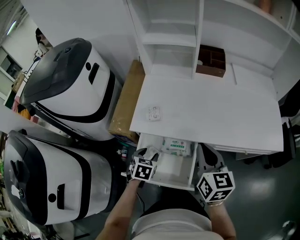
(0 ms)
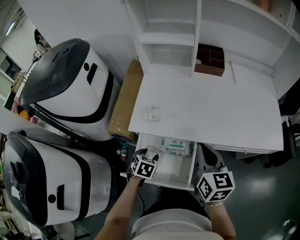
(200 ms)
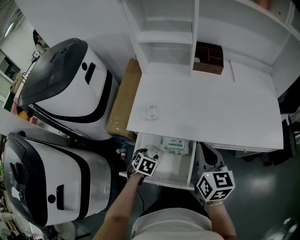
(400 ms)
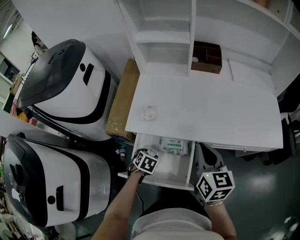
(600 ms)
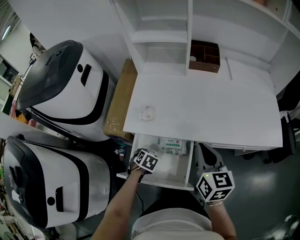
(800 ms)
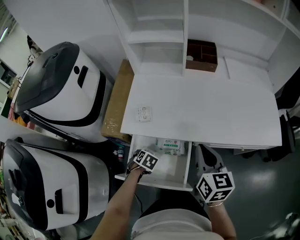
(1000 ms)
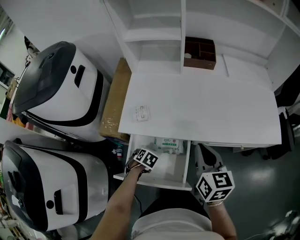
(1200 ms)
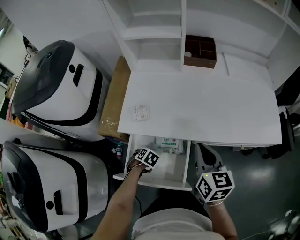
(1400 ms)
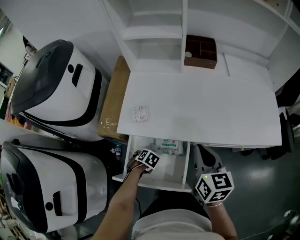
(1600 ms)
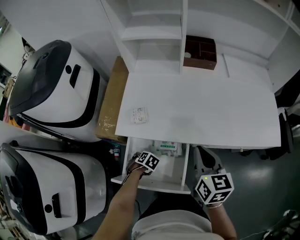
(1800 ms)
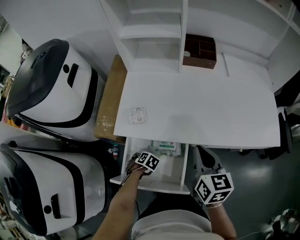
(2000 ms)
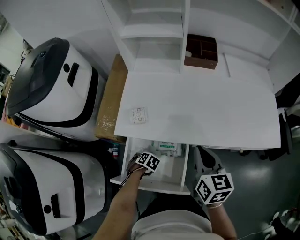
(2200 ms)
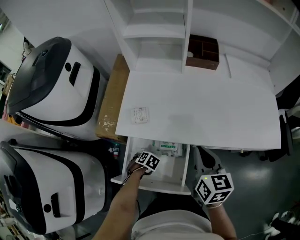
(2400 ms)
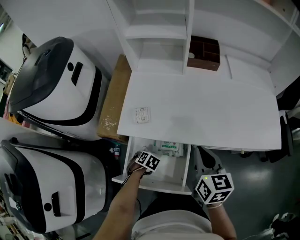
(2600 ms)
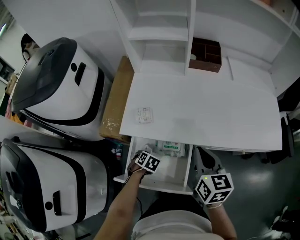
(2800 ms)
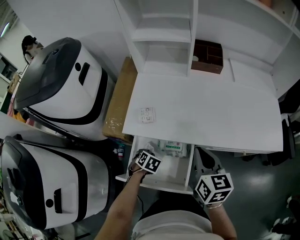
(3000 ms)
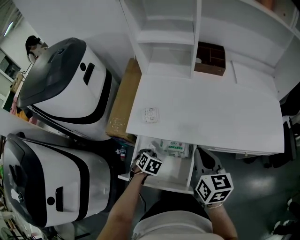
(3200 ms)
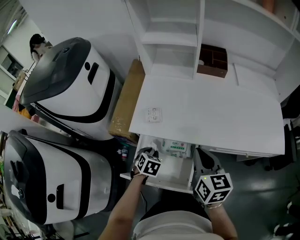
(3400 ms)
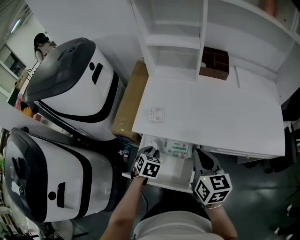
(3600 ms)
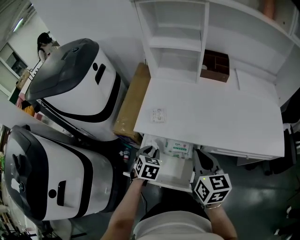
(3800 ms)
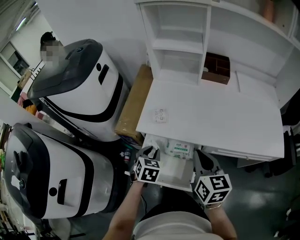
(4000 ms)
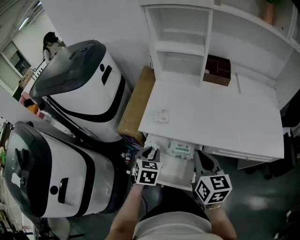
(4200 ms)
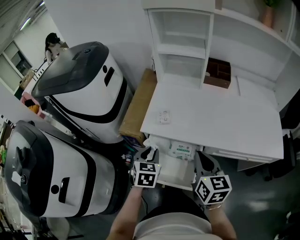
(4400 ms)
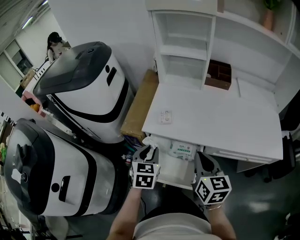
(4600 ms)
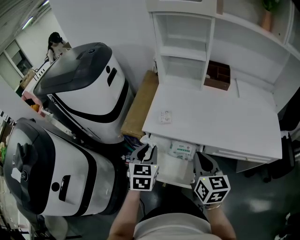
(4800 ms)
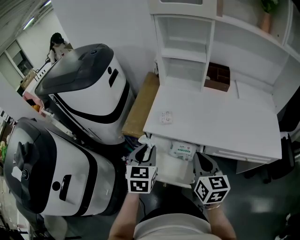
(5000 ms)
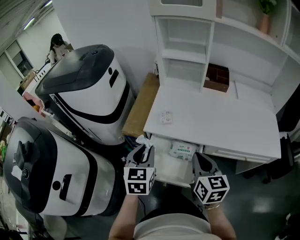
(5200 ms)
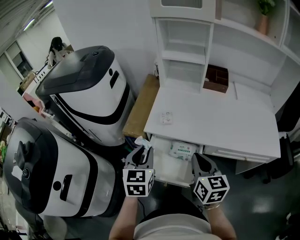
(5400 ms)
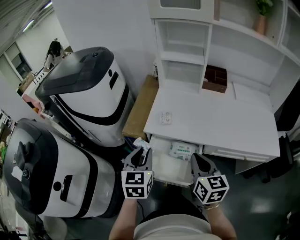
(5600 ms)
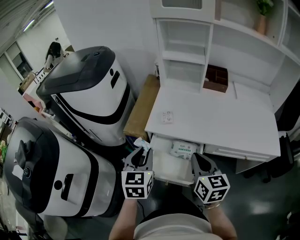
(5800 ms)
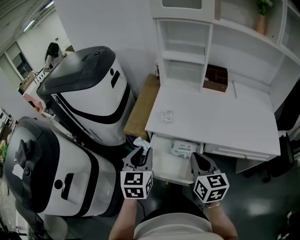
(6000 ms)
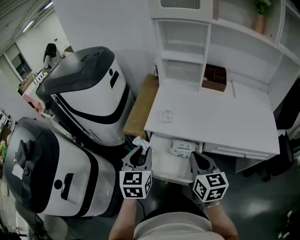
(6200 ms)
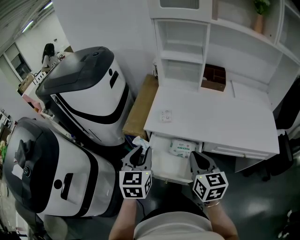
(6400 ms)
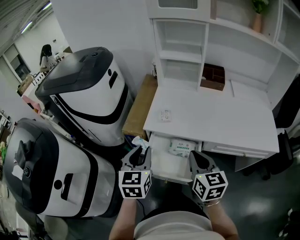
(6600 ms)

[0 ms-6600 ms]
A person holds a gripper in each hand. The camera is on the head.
0 ms to 1600 ms: The left gripper travels downward by approximately 15 cm, and points its fingers about 30 degrees further downward.
1600 ms to 3200 ms: The left gripper travels upward by roughly 10 cm, turns by approximately 20 degrees, and closes.
3200 ms to 5000 ms: The right gripper goes some 10 cm to the left and backward. Meanwhile the left gripper goes about 25 cm upward, and points its fingers approximately 40 degrees further upward.
5000 ms to 6600 ms: The left gripper changes place by about 5 cm.

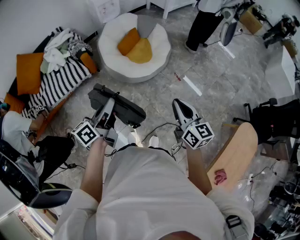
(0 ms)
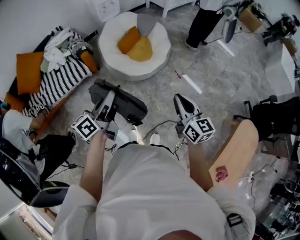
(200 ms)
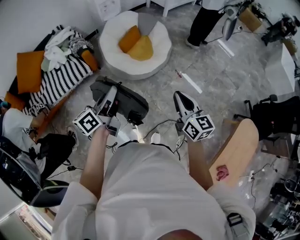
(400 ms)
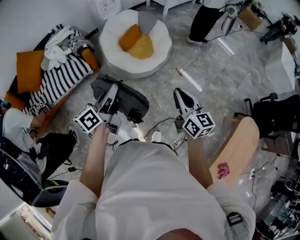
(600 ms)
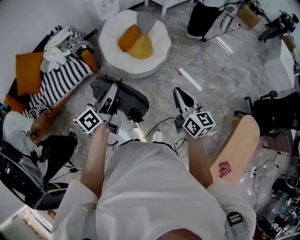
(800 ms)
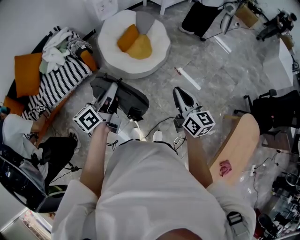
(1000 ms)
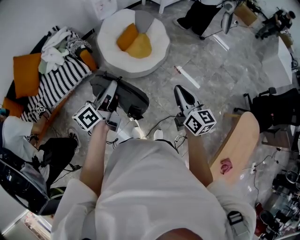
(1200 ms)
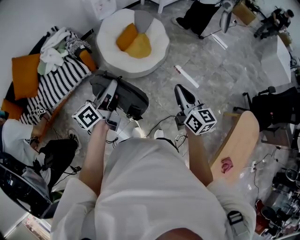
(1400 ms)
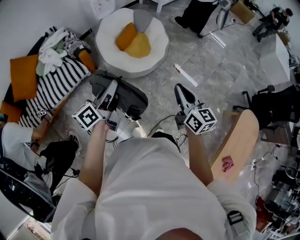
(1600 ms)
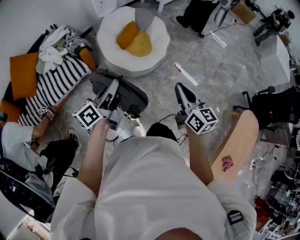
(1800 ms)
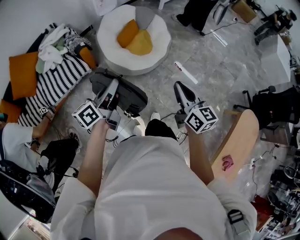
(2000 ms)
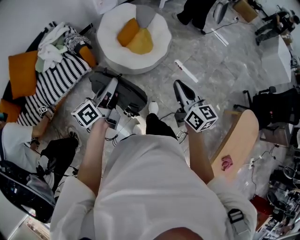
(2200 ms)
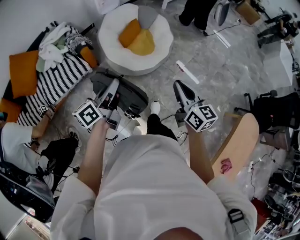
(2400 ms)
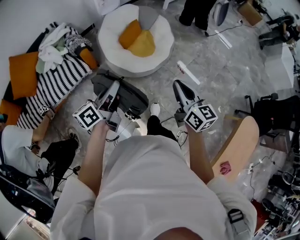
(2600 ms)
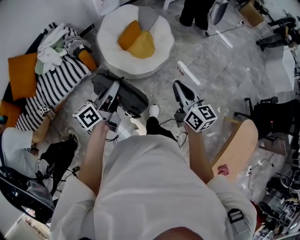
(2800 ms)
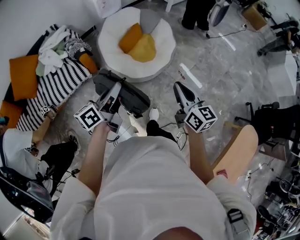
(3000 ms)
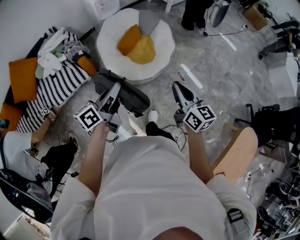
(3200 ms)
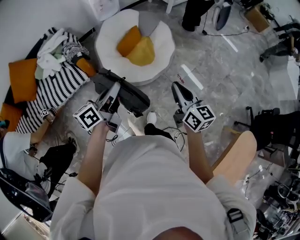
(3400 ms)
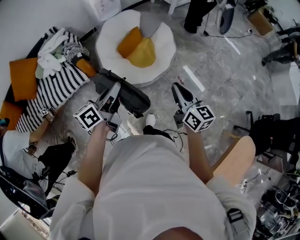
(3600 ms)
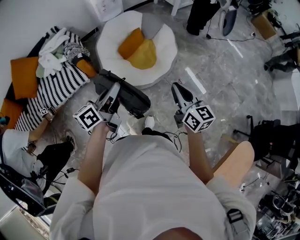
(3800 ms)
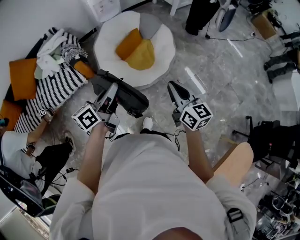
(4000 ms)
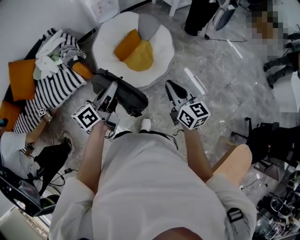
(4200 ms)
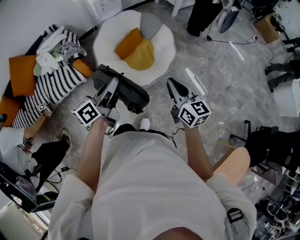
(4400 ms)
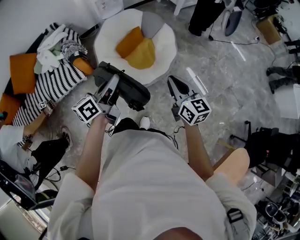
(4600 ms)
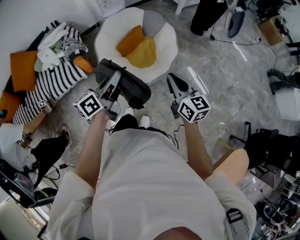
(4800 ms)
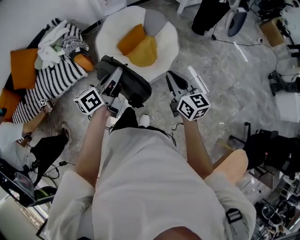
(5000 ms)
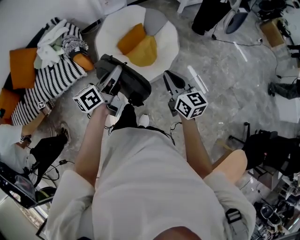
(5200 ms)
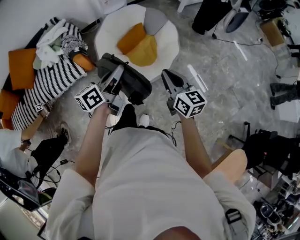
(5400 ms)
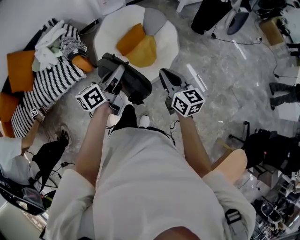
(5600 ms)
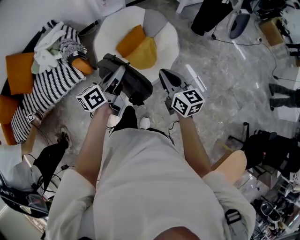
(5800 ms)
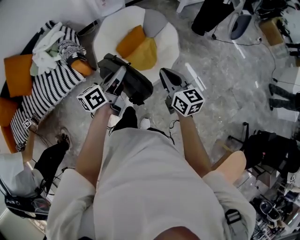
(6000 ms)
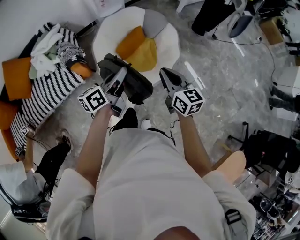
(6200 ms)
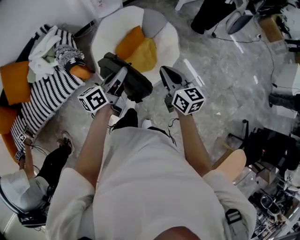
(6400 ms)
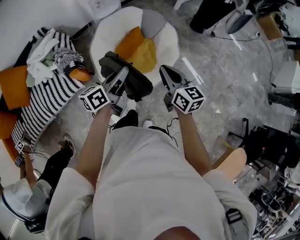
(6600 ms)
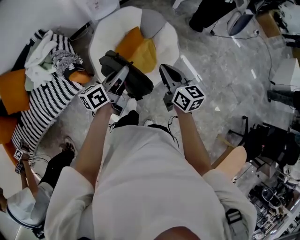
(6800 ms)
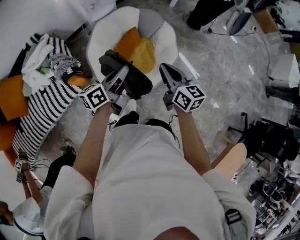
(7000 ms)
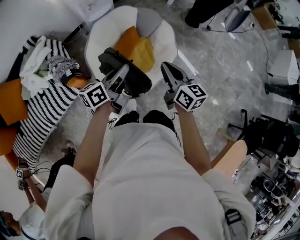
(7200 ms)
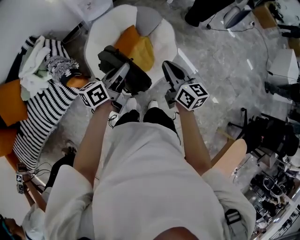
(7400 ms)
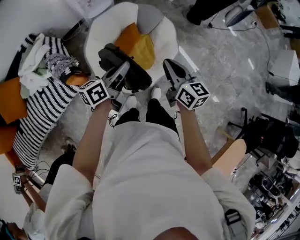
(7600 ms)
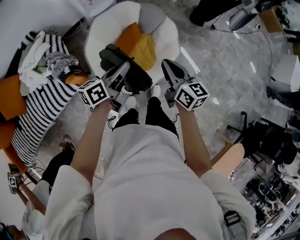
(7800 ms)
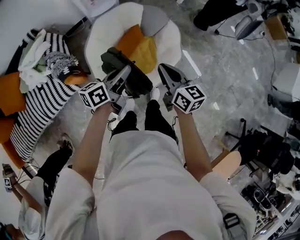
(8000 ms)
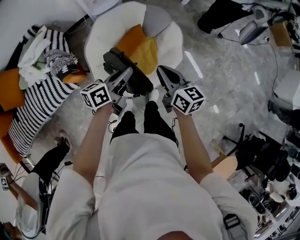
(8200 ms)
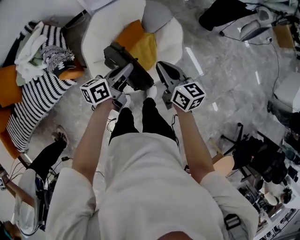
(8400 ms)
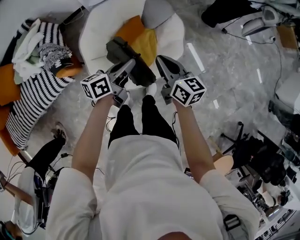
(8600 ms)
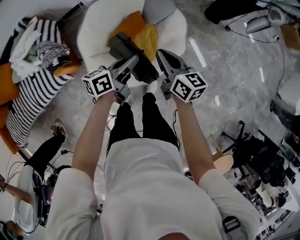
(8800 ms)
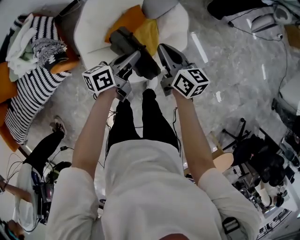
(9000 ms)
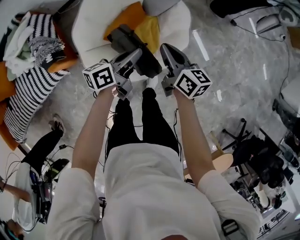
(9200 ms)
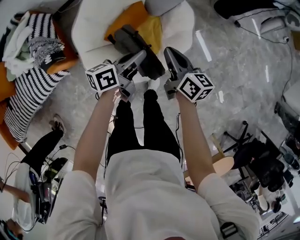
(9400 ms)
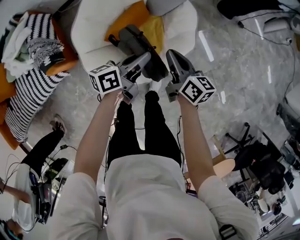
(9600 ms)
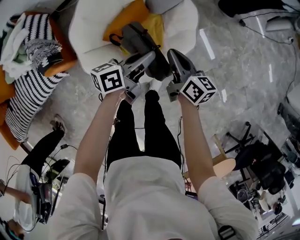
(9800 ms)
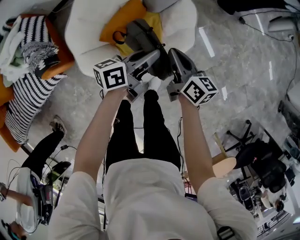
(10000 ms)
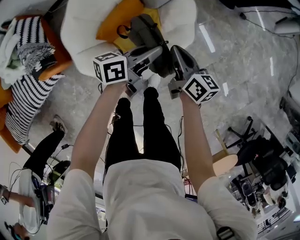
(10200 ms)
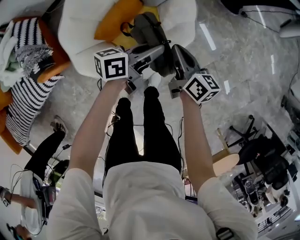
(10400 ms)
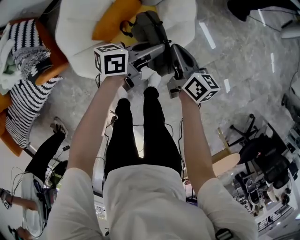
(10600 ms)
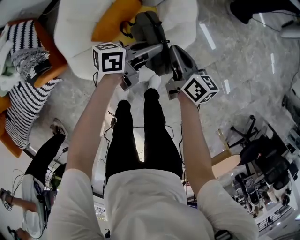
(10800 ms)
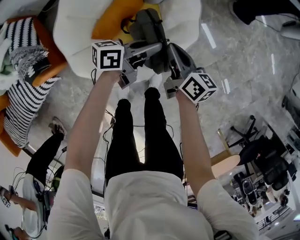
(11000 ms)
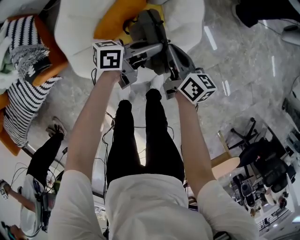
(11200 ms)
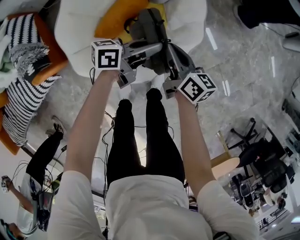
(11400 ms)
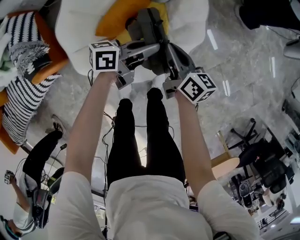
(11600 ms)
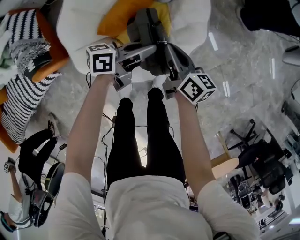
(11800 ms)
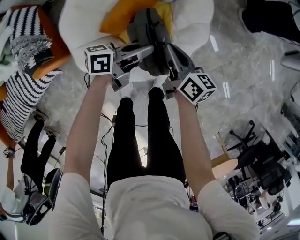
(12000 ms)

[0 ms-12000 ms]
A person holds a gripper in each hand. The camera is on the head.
0 ms to 1600 ms: The right gripper goes roughly 10 cm to the left; the left gripper shifts about 10 cm to the left and forward.
1600 ms to 3000 ms: The two grippers go roughly 10 cm forward.
3000 ms to 4400 ms: The two grippers go about 15 cm forward and to the right.
4400 ms to 6000 ms: The right gripper moves forward and to the left, about 15 cm; the left gripper shifts approximately 10 cm forward.
6000 ms to 7600 ms: The grippers both shift forward by some 15 cm.
7600 ms to 9000 ms: The right gripper travels downward and forward by approximately 20 cm. The left gripper shifts roughly 20 cm downward, to the right and forward.
9000 ms to 10400 ms: The right gripper shifts some 15 cm downward and to the right; the left gripper moves to the right and downward, some 15 cm.
10400 ms to 12000 ms: The right gripper shifts approximately 10 cm to the left and downward. The left gripper goes roughly 10 cm downward and to the left.

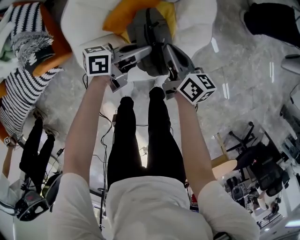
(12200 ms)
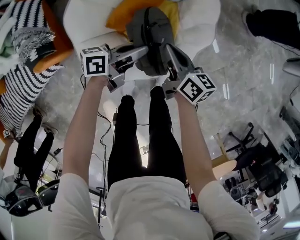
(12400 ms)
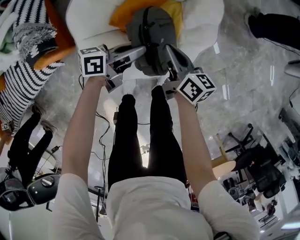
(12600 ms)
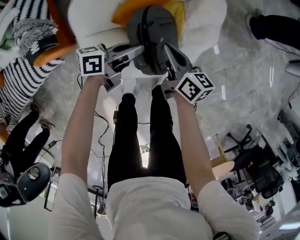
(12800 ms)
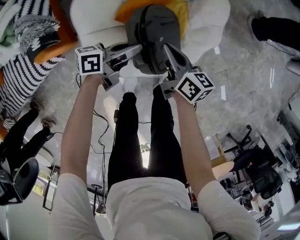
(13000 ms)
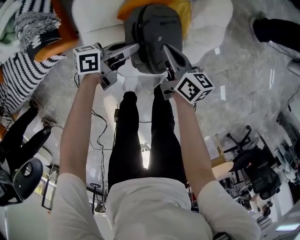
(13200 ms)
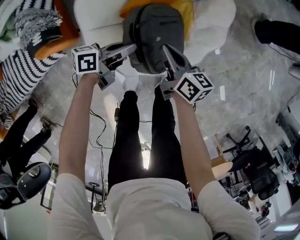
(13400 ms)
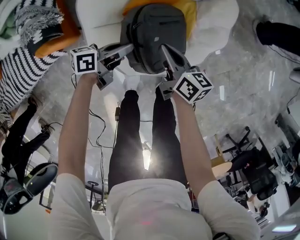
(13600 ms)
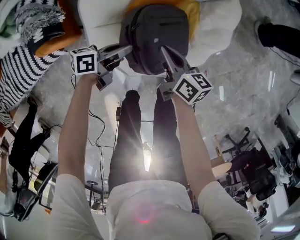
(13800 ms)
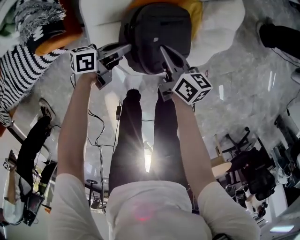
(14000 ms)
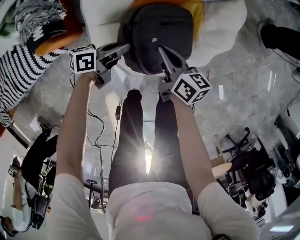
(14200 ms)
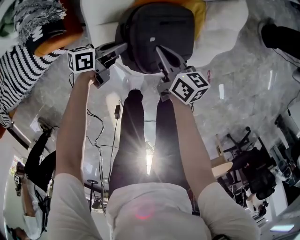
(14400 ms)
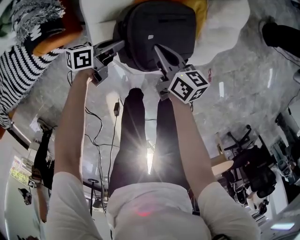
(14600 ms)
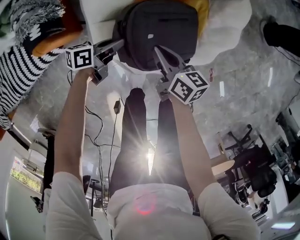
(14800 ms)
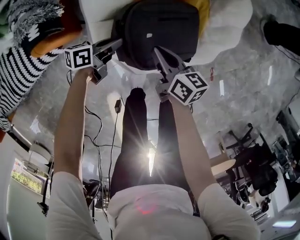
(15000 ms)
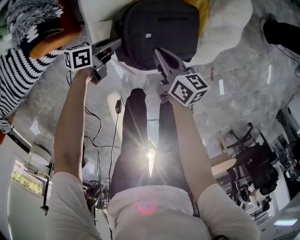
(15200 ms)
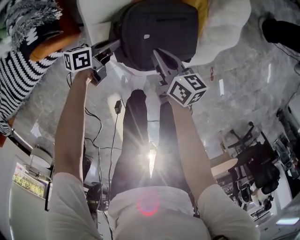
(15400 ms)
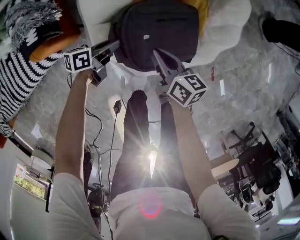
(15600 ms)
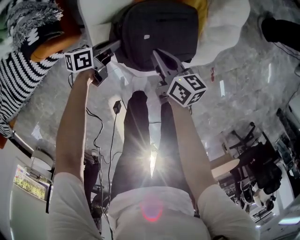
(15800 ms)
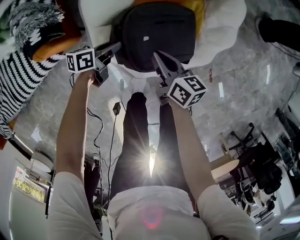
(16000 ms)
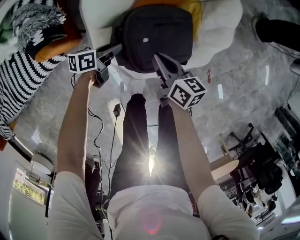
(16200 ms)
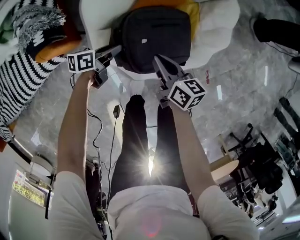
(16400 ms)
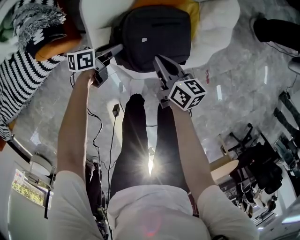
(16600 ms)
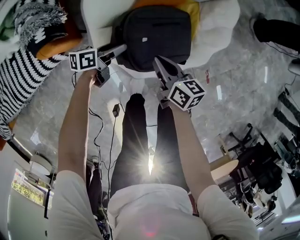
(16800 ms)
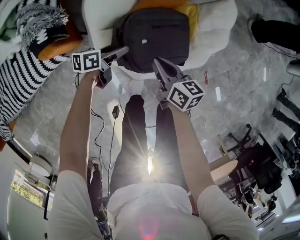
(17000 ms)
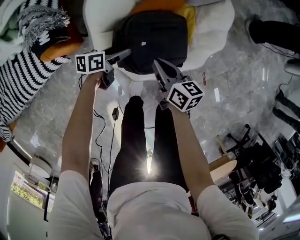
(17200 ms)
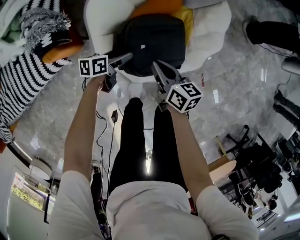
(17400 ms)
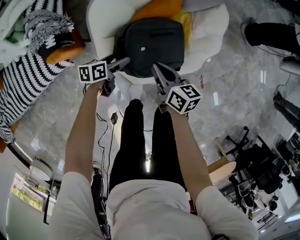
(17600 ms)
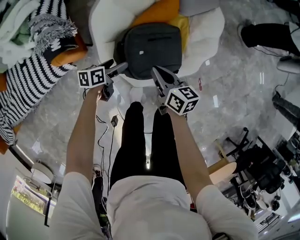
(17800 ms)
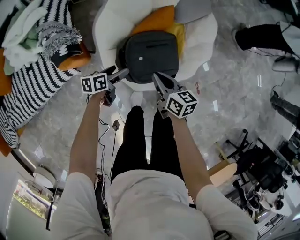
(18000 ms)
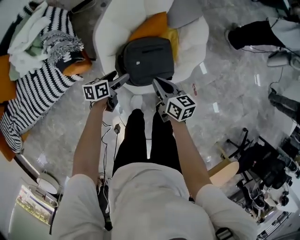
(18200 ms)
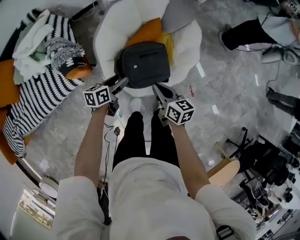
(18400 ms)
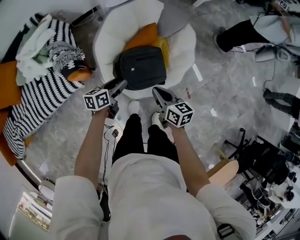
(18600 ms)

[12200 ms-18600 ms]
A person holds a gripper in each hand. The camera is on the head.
12200 ms to 13800 ms: The left gripper heads to the left, backward and downward, covering approximately 20 cm. Meanwhile the right gripper travels to the left and backward by about 15 cm.
13800 ms to 15400 ms: The right gripper heads downward, covering approximately 5 cm. Meanwhile the left gripper heads downward and to the left, covering roughly 10 cm.
15400 ms to 17000 ms: The left gripper opens.
17000 ms to 18600 ms: The two grippers go roughly 20 cm upward.
